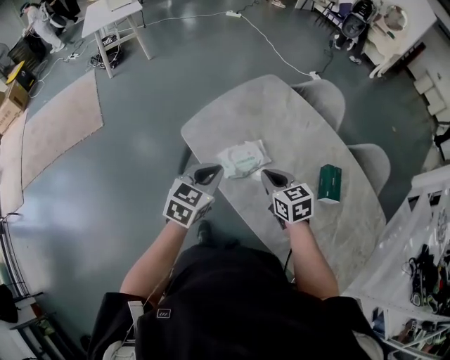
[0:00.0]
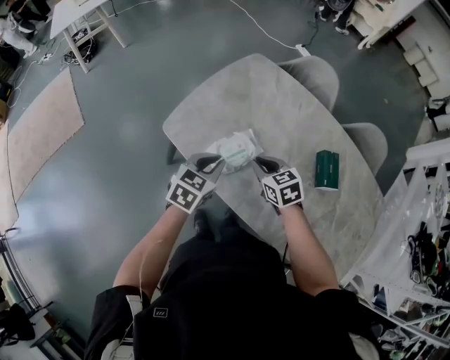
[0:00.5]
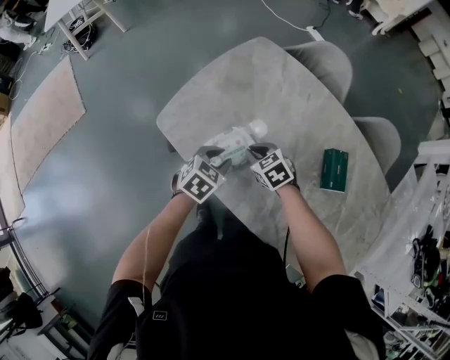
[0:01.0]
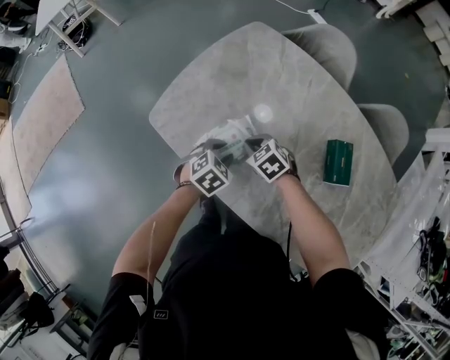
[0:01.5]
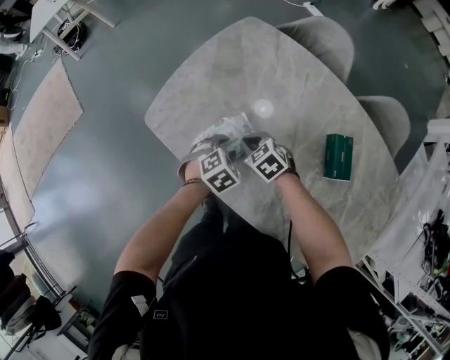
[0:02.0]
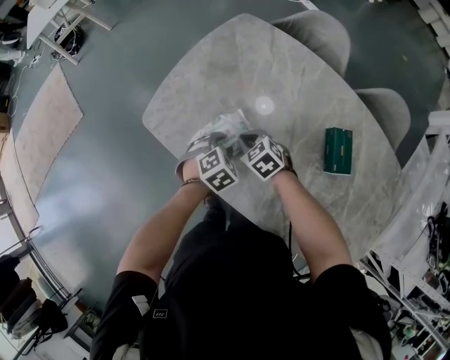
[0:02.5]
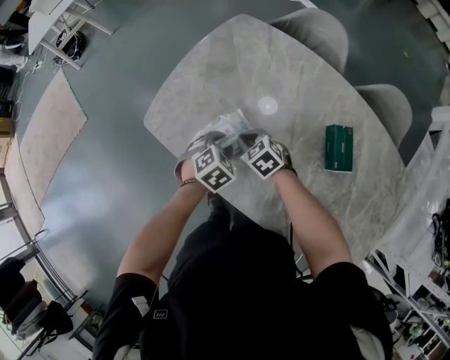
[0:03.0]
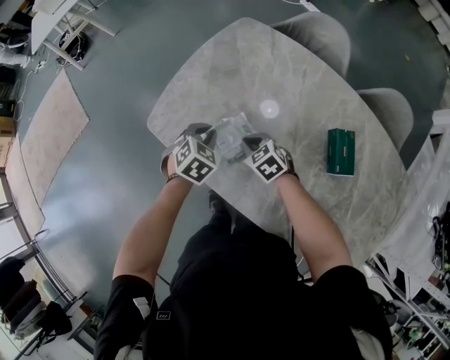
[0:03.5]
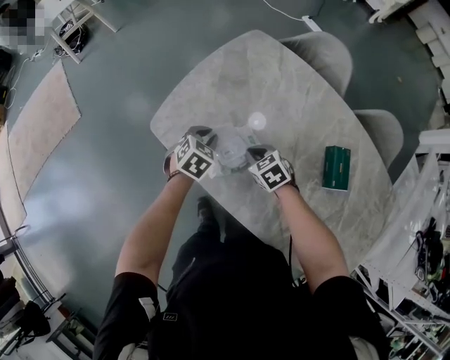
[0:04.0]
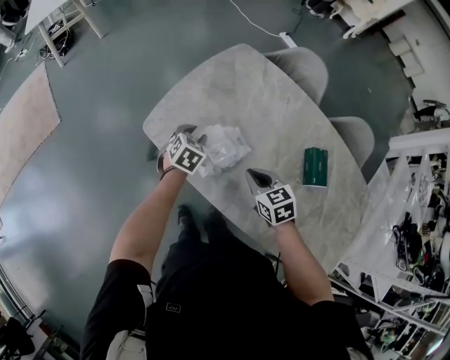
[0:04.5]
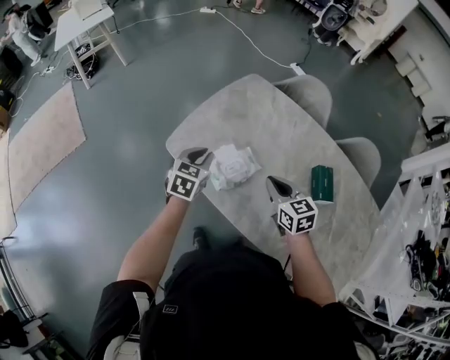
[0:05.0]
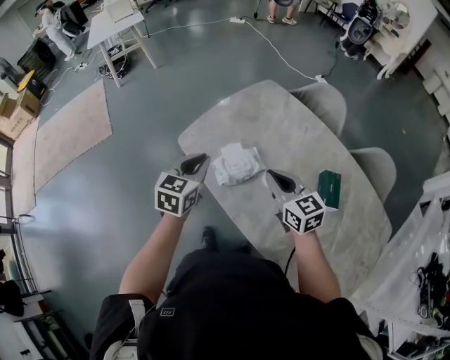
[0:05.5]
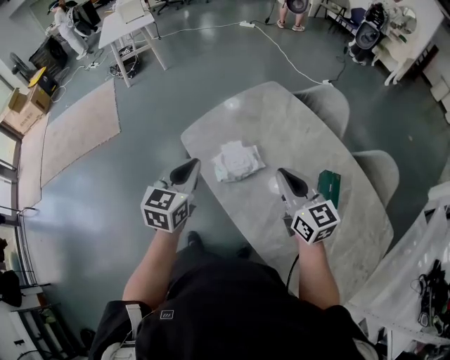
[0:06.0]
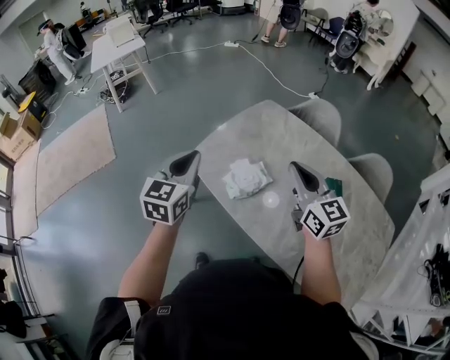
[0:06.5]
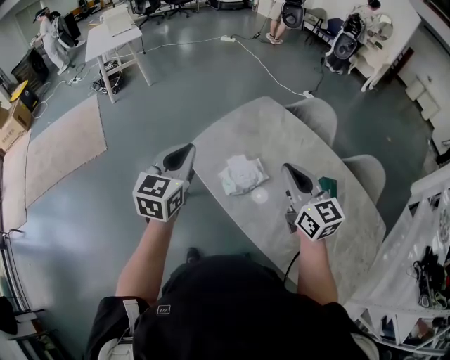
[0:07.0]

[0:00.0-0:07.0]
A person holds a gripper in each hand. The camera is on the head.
0:00.0 to 0:02.0: The right gripper travels downward and forward by roughly 20 cm, and turns by about 30 degrees, while the left gripper heads downward, to the right and forward, covering about 30 cm, tilts its fingers approximately 40 degrees downward, and opens its fingers.
0:02.0 to 0:03.5: The left gripper moves forward and upward, roughly 10 cm, and closes.
0:03.5 to 0:05.0: The left gripper moves upward and to the left, some 10 cm, rotates some 30 degrees, and opens, then closes once more. The right gripper shifts some 20 cm upward and backward, and swivels some 30 degrees.
0:05.0 to 0:07.0: The right gripper goes roughly 20 cm upward, and rotates roughly 30 degrees. The left gripper shifts approximately 25 cm upward, backward and to the left, and turns by some 20 degrees.

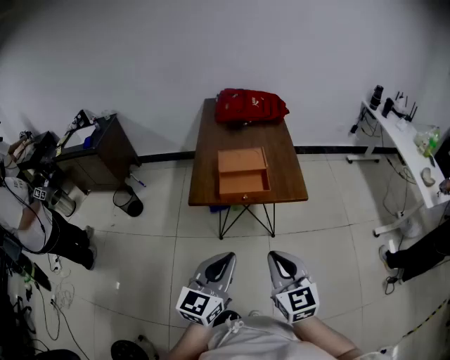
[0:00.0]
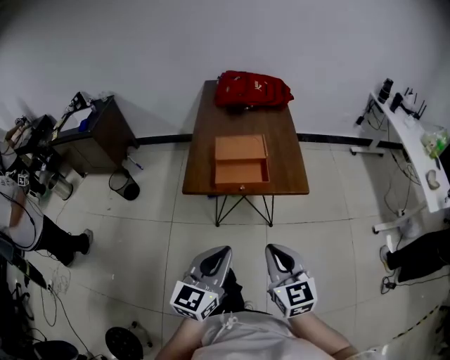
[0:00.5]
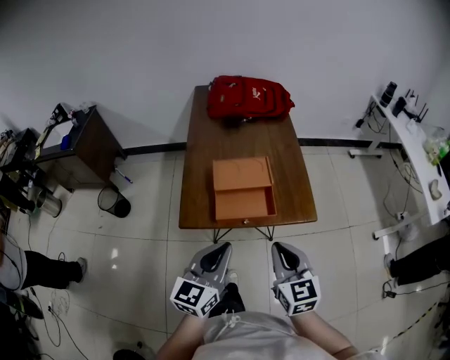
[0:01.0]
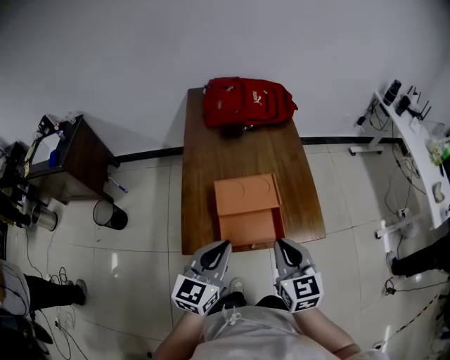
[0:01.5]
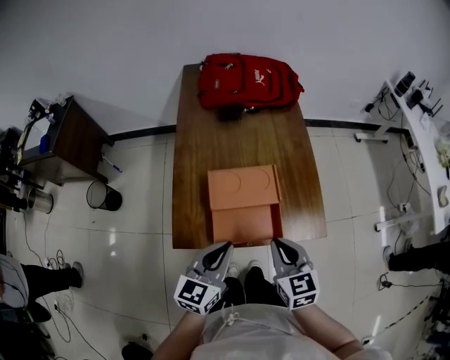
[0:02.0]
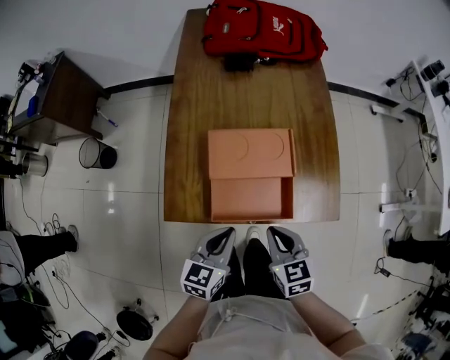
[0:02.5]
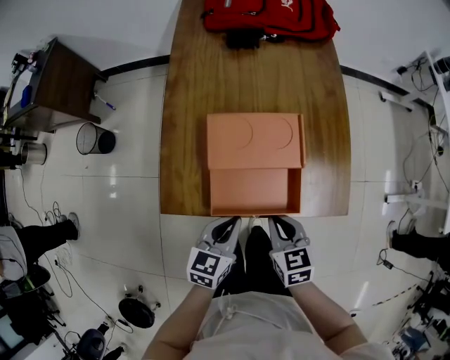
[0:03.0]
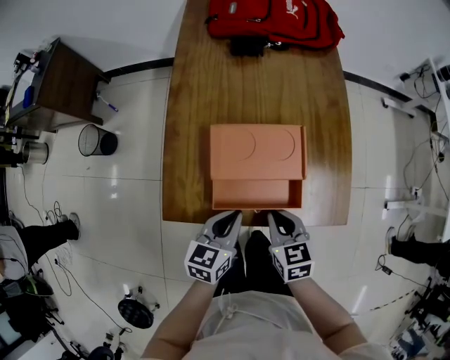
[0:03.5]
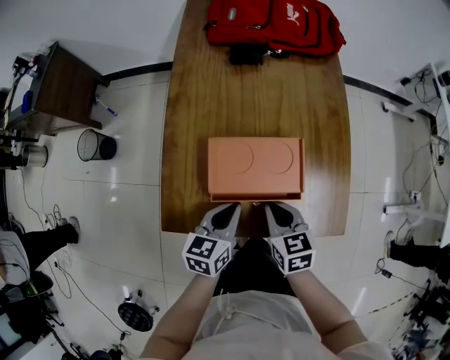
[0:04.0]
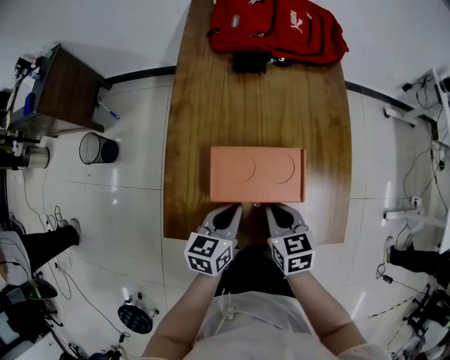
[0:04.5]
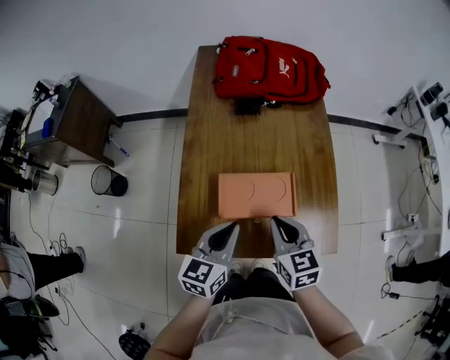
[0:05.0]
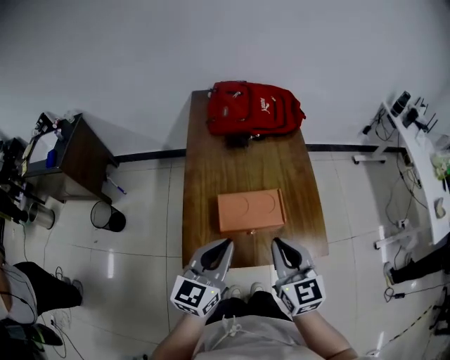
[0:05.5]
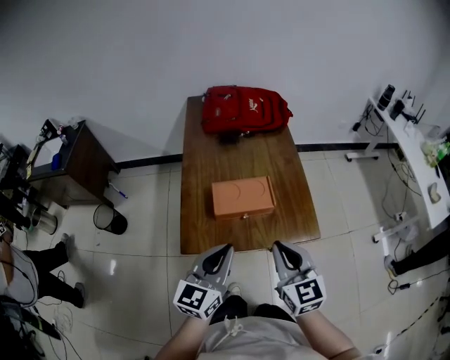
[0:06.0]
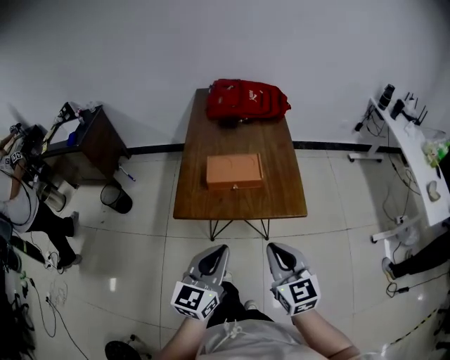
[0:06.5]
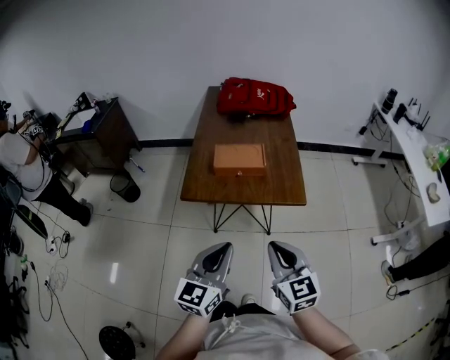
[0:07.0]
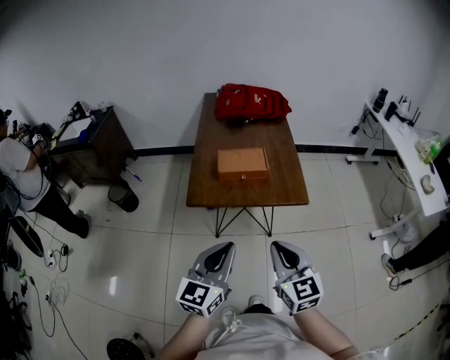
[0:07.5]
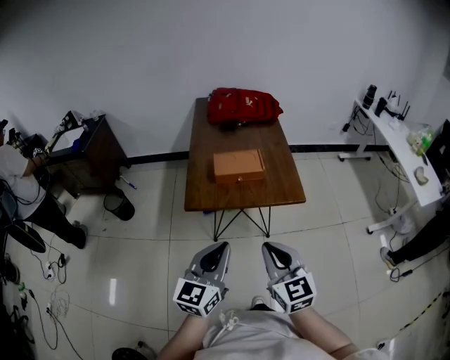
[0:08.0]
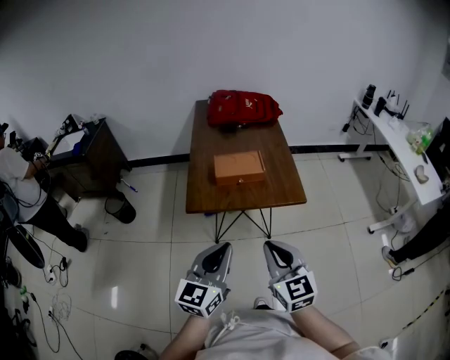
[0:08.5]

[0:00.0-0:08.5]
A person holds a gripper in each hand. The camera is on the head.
0:00.0 to 0:02.0: The two grippers go some 35 cm forward.
0:02.0 to 0:04.0: The two grippers go roughly 15 cm downward and forward. The left gripper swivels about 20 degrees.
0:04.0 to 0:06.5: Both grippers travel together backward and upward, roughly 35 cm. The right gripper changes its angle by about 30 degrees; the left gripper rotates some 30 degrees.
0:06.5 to 0:08.5: The right gripper is displaced backward and to the left by some 10 cm; the left gripper goes about 10 cm backward.

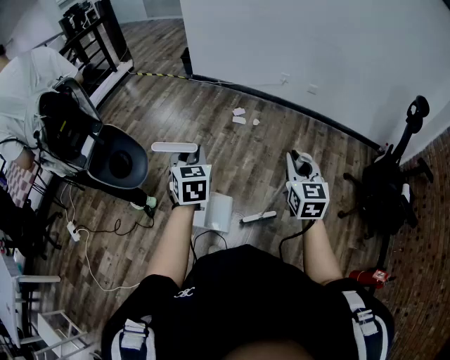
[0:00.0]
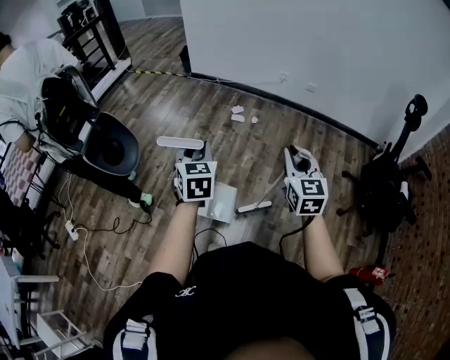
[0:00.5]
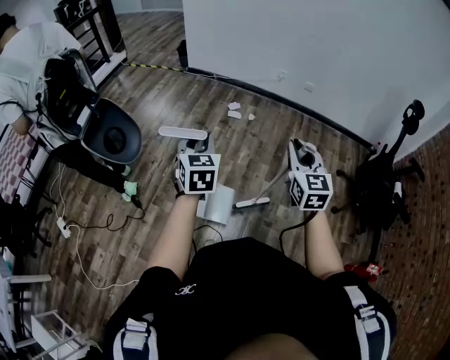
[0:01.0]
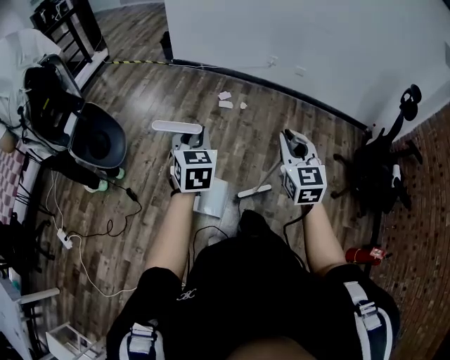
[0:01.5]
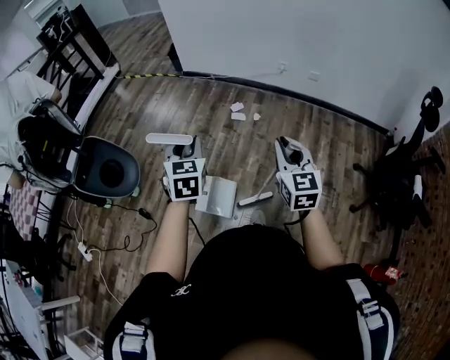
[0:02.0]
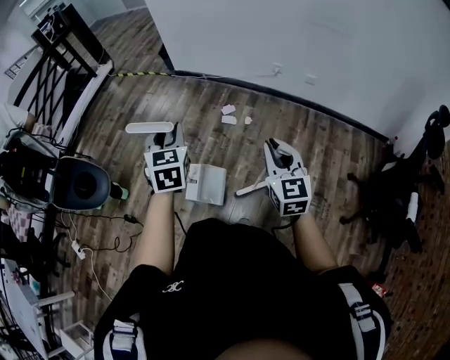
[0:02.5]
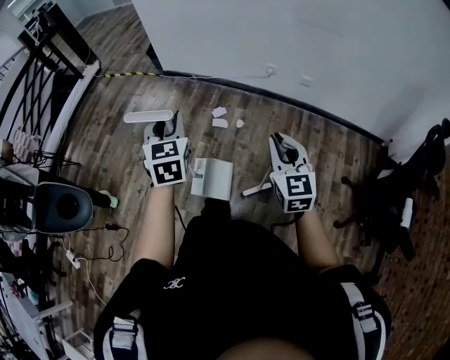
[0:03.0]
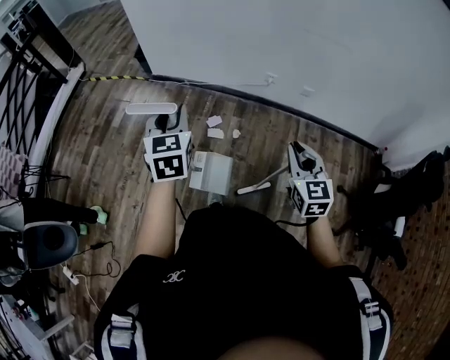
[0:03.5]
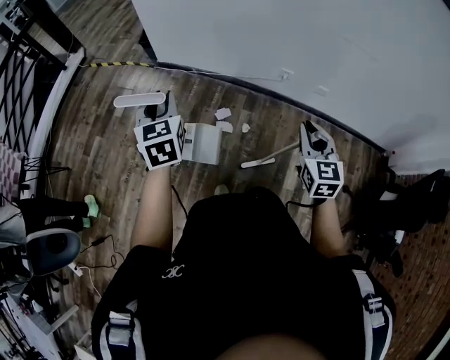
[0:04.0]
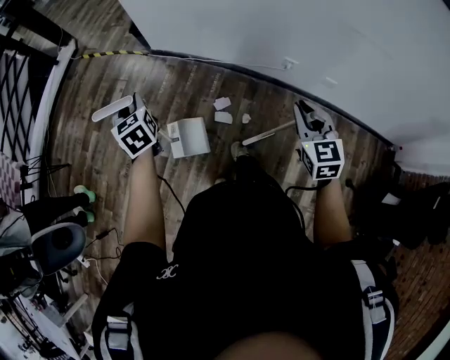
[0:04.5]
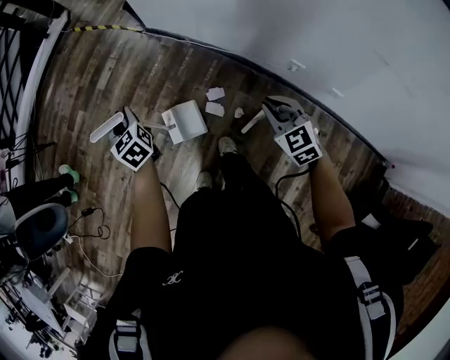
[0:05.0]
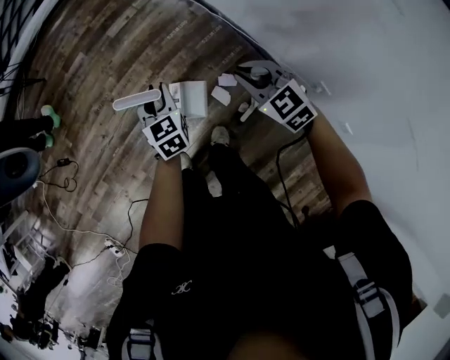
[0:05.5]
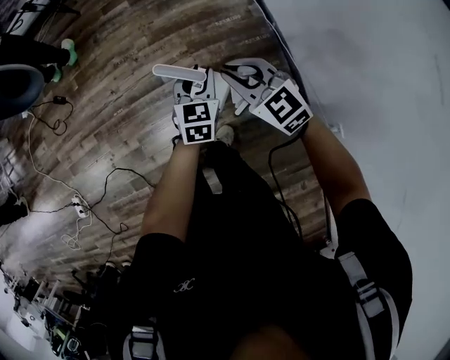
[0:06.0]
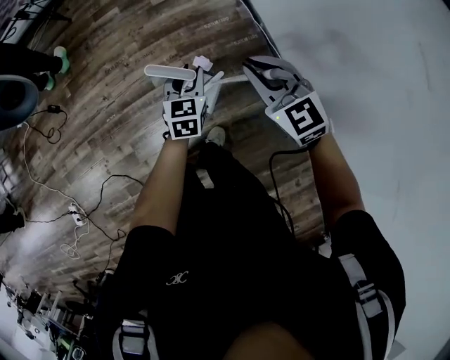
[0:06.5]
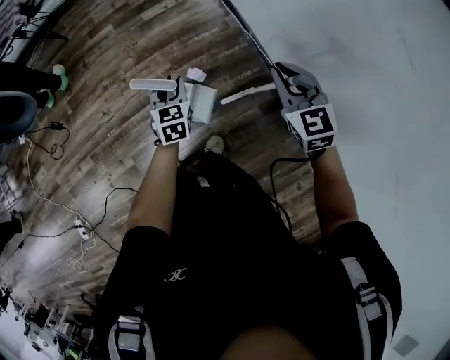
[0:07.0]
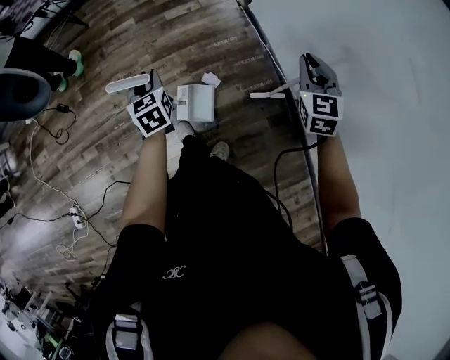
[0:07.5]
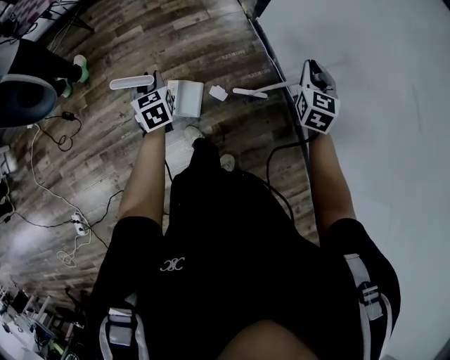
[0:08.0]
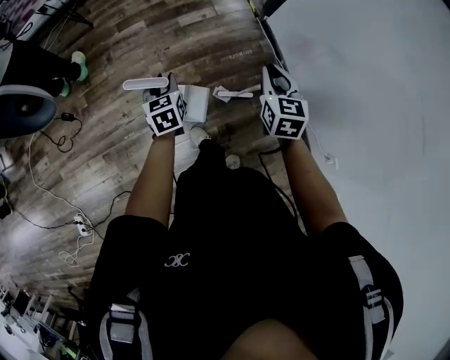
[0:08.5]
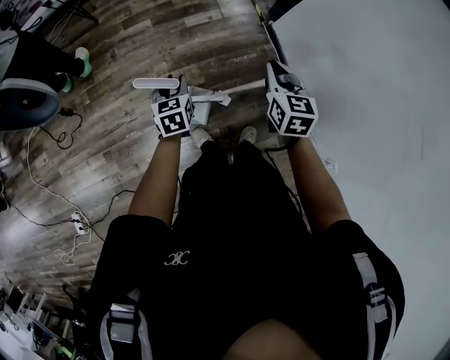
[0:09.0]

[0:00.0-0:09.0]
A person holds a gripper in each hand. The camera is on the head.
0:00.0 to 0:02.0: The two grippers go some 15 cm forward.
0:02.0 to 0:04.5: The two grippers travel together, forward, about 60 cm. The left gripper turns by about 30 degrees.
0:04.5 to 0:07.0: The right gripper shifts by about 35 cm, and rotates roughly 50 degrees, while the left gripper goes approximately 20 cm downward, and swivels about 20 degrees.
0:07.0 to 0:09.0: The left gripper heads to the left and forward, covering about 25 cm; the right gripper heads forward and to the left, covering roughly 30 cm.

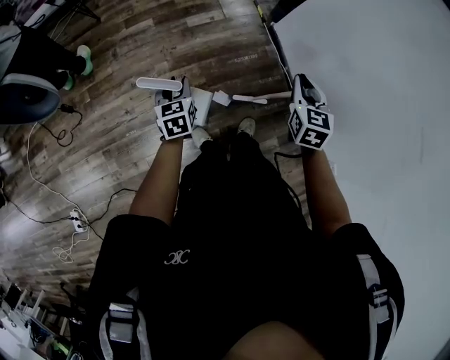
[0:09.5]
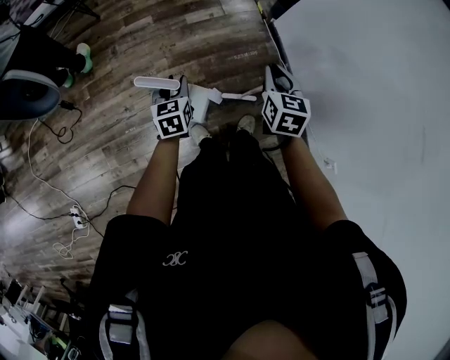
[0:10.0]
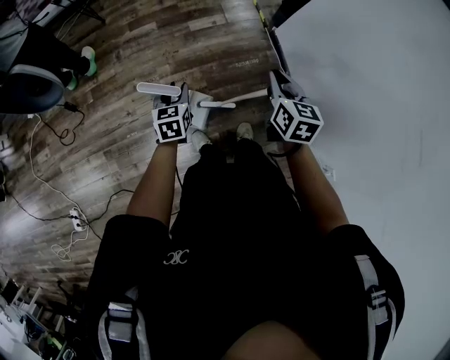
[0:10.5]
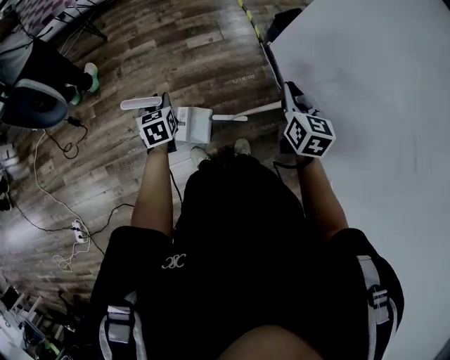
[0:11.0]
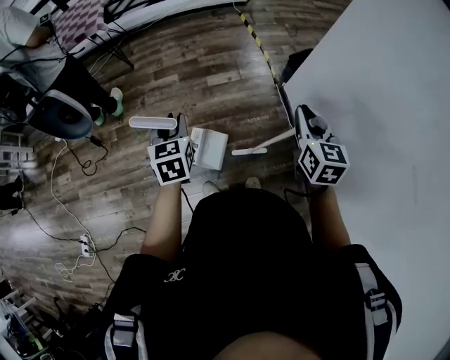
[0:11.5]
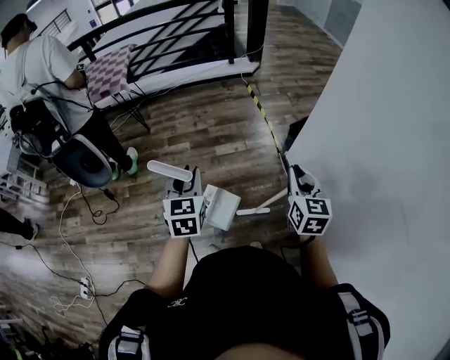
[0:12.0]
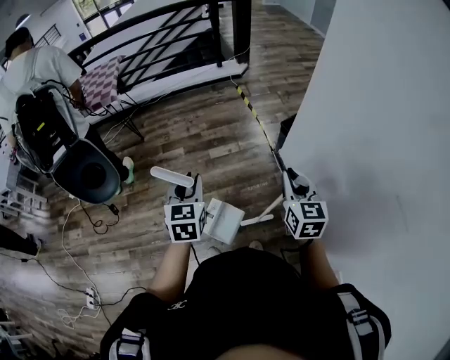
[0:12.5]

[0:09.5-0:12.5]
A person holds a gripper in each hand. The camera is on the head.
0:11.0 to 0:12.5: The left gripper travels upward and to the right by some 25 cm, and turns by some 20 degrees. Meanwhile the right gripper goes roughly 10 cm upward.
